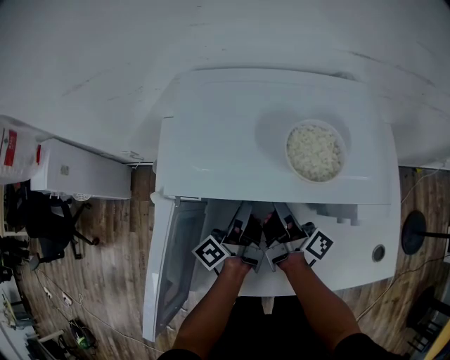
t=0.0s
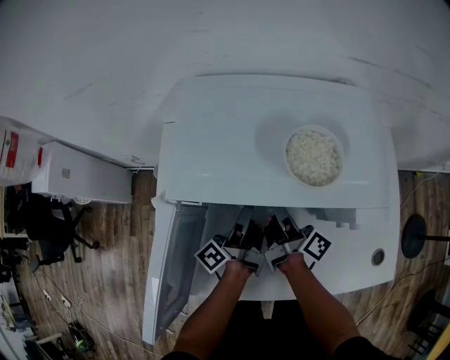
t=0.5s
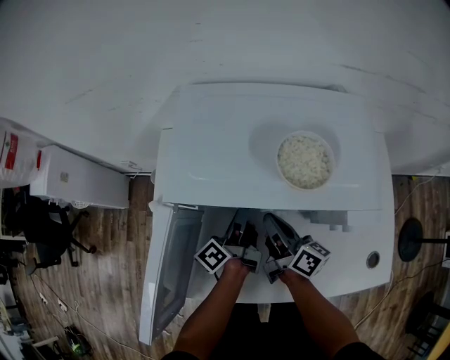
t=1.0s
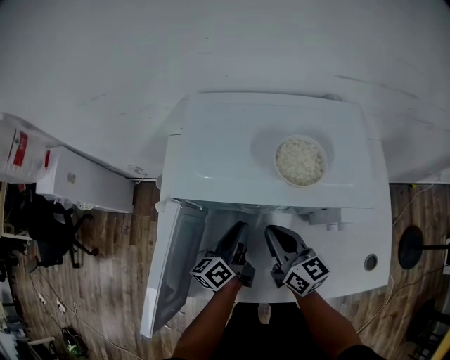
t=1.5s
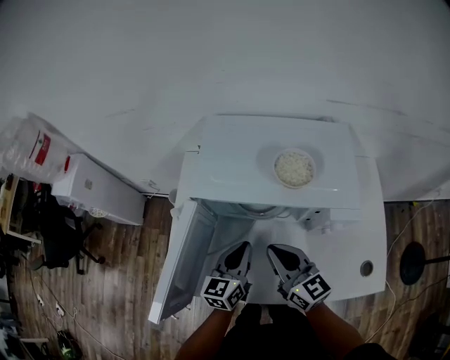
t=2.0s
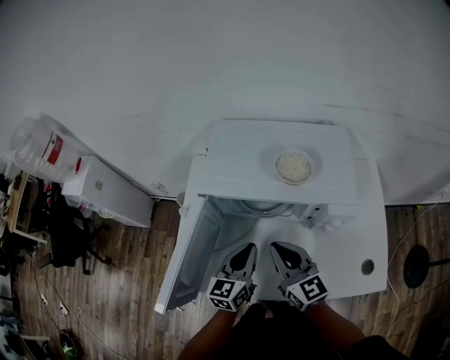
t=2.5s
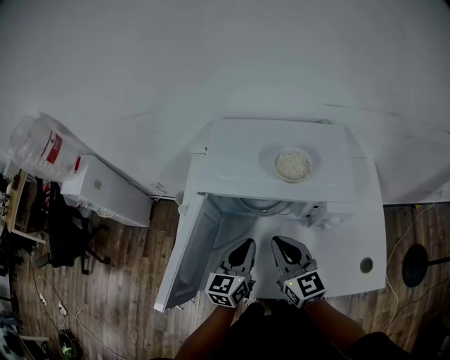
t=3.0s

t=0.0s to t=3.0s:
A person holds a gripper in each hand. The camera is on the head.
t=0.0s to t=1.5s: The right gripper moves about 5 cm, and rotates around the line of its fingers by some 50 degrees, counterclockwise from behind.
t=1.5s to t=3.0s: The right gripper moves upward, some 10 cm, and turns by some 20 degrees.

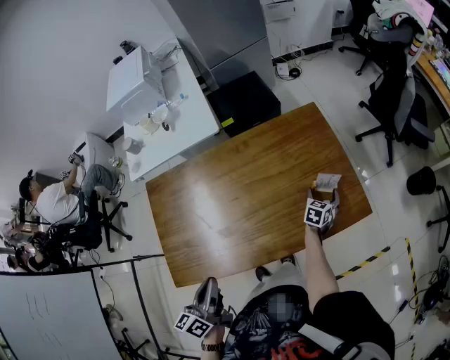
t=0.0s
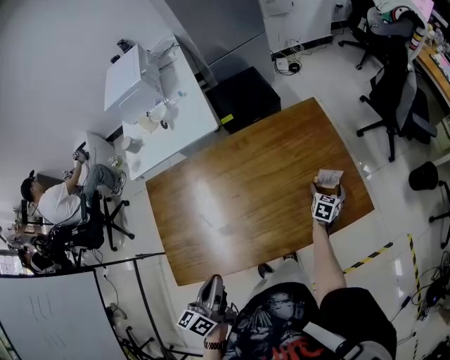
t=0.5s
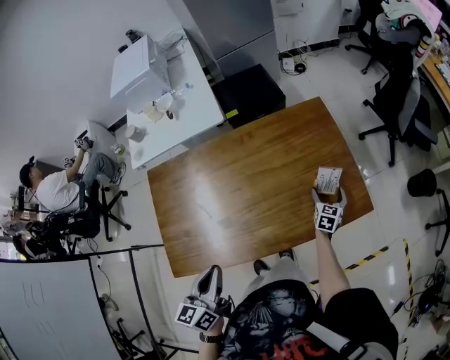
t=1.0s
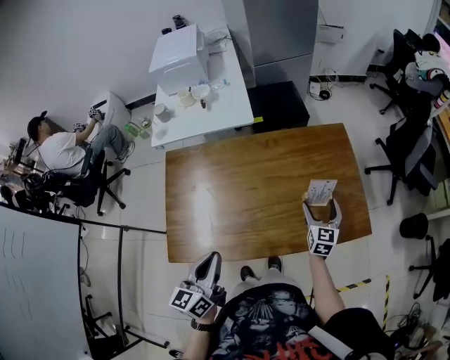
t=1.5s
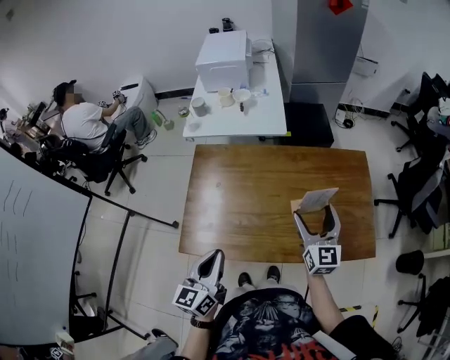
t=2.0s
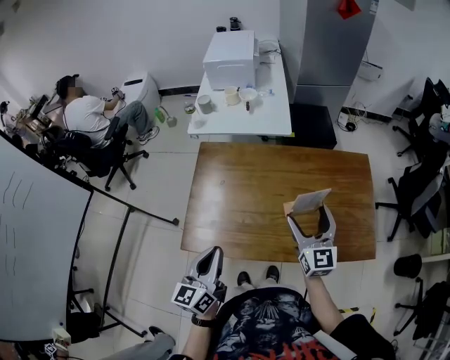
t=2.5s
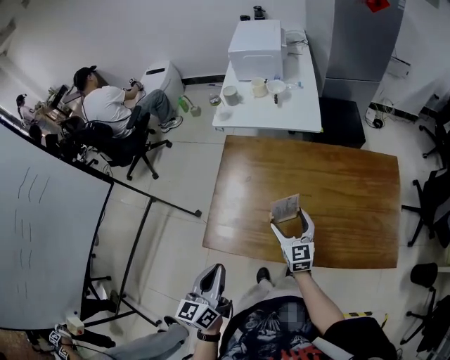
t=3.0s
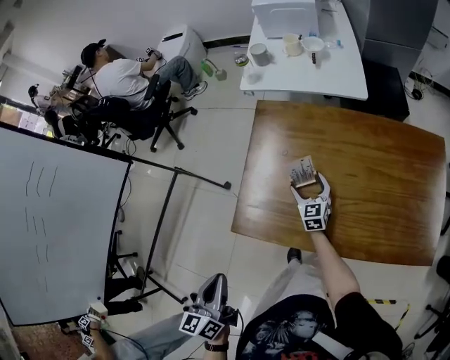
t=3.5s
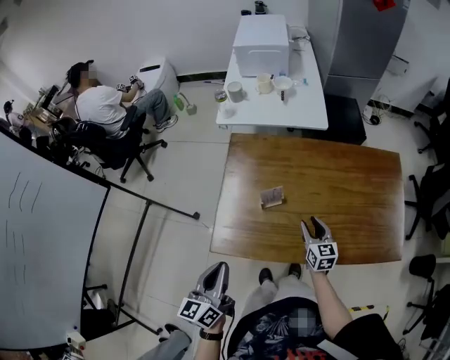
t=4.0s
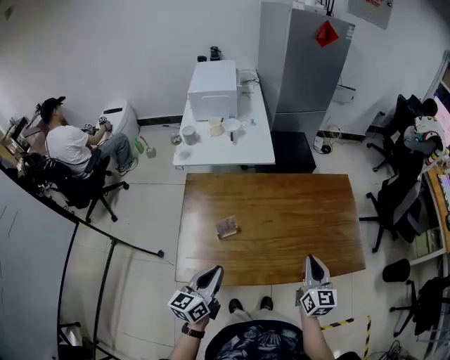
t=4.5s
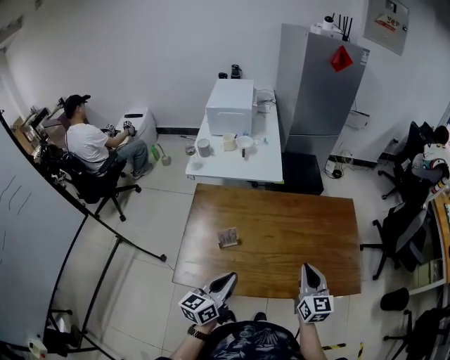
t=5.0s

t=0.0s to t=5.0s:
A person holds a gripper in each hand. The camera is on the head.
t=0.0s to t=2.5s: The left gripper changes place by roughly 15 cm, and swivels some 20 degrees; the right gripper shifts roughly 35 cm upward, and tips its fingers upward by roughly 40 degrees.
t=2.5s to t=5.0s: The right gripper travels downward and back again, about 30 cm each way, and closes its fingers.

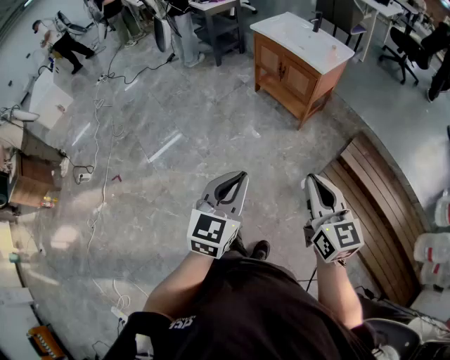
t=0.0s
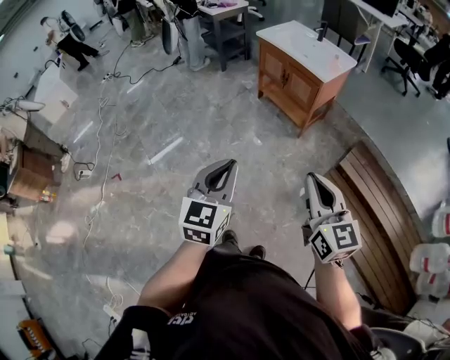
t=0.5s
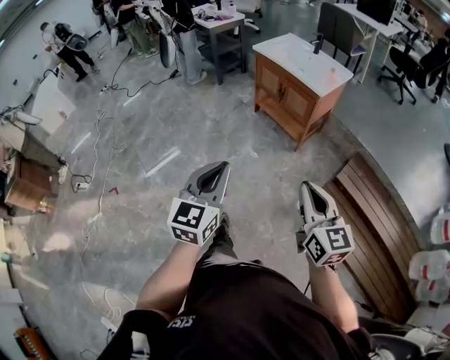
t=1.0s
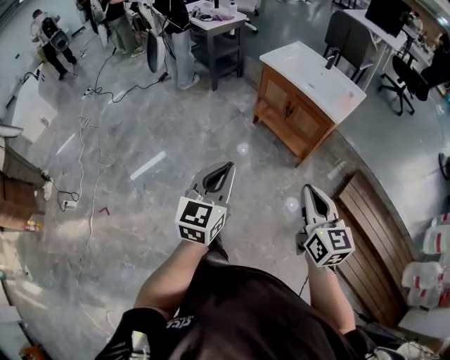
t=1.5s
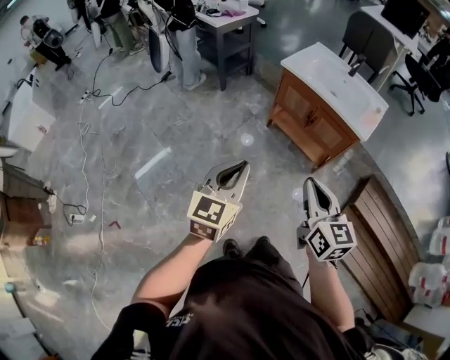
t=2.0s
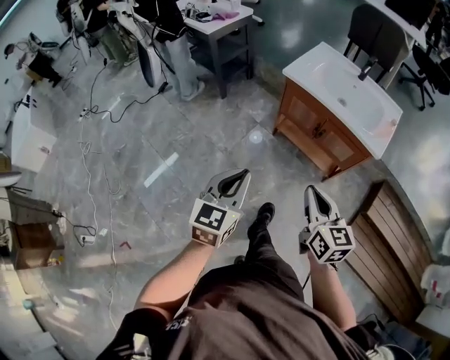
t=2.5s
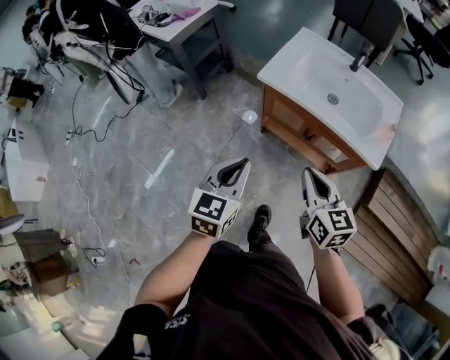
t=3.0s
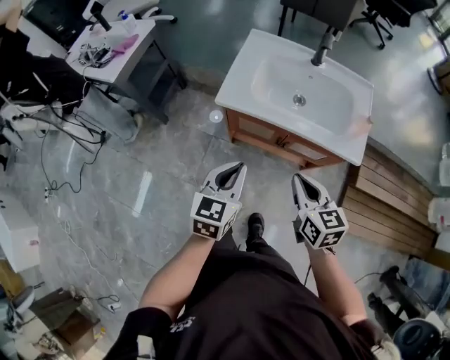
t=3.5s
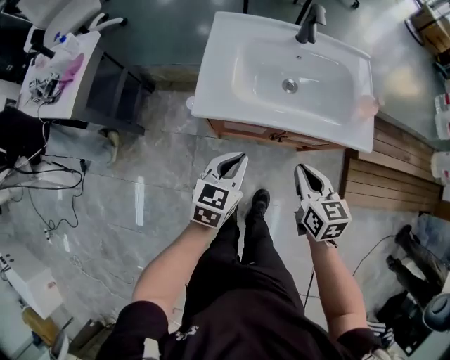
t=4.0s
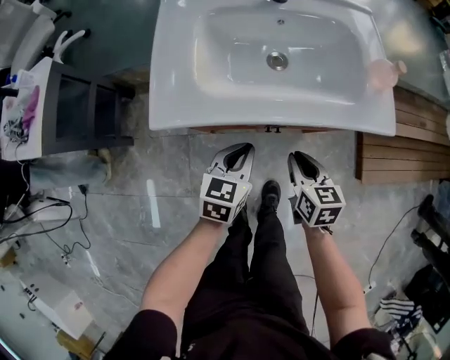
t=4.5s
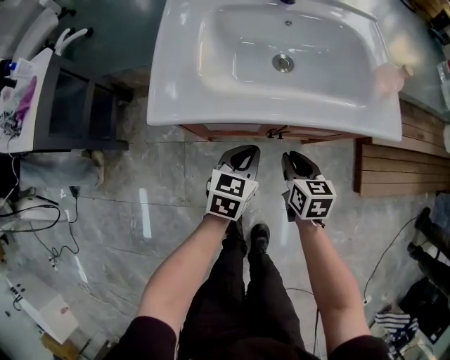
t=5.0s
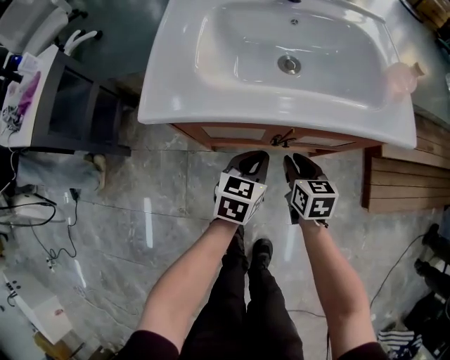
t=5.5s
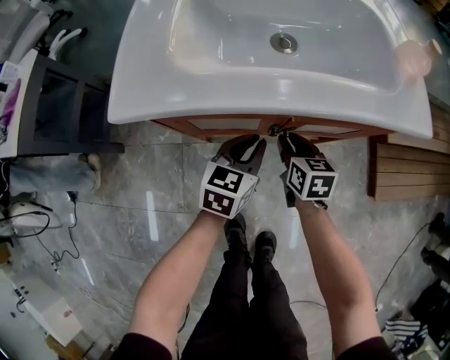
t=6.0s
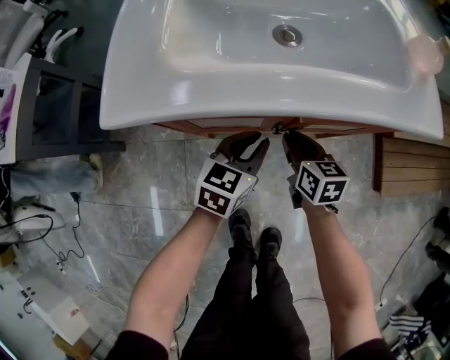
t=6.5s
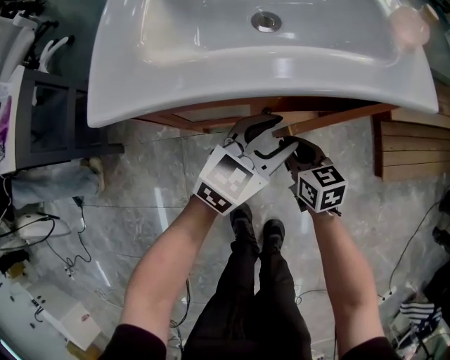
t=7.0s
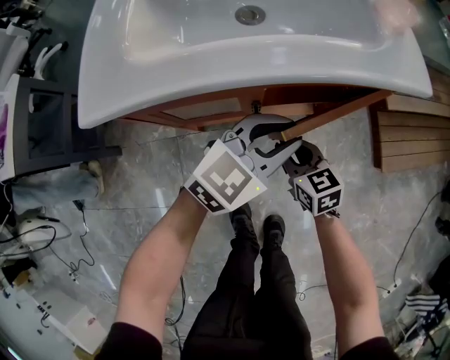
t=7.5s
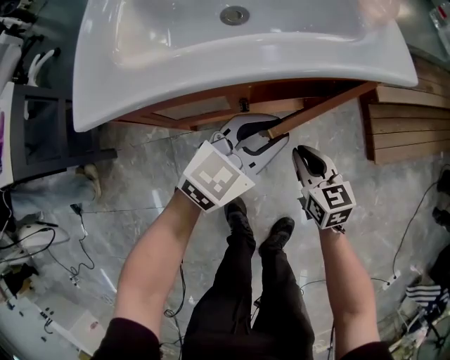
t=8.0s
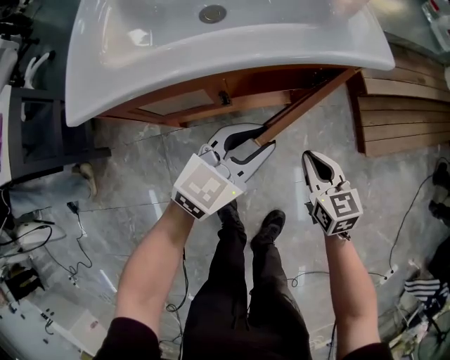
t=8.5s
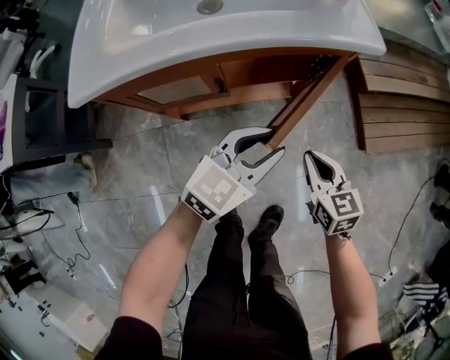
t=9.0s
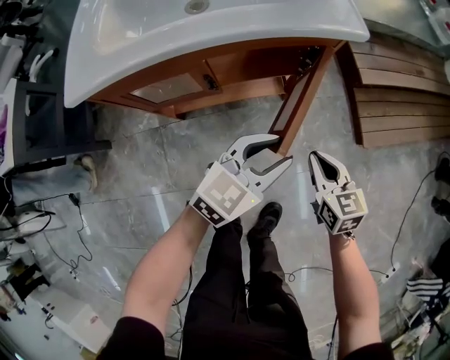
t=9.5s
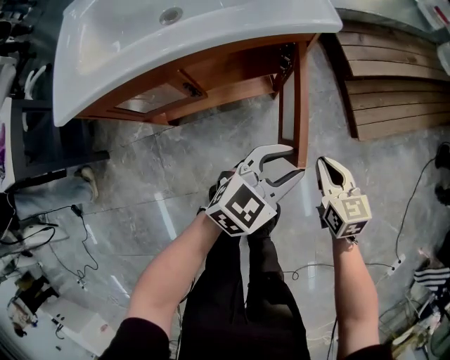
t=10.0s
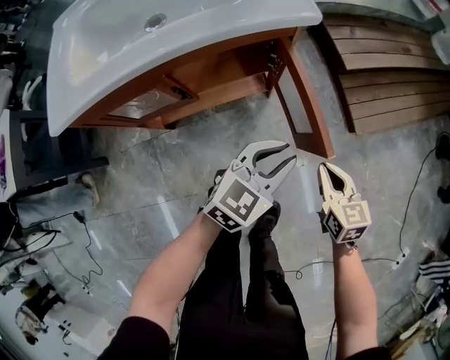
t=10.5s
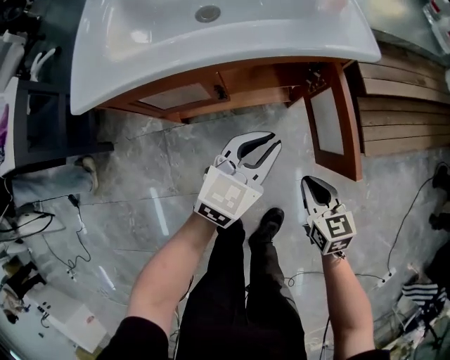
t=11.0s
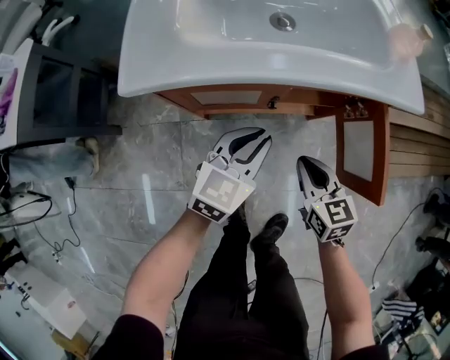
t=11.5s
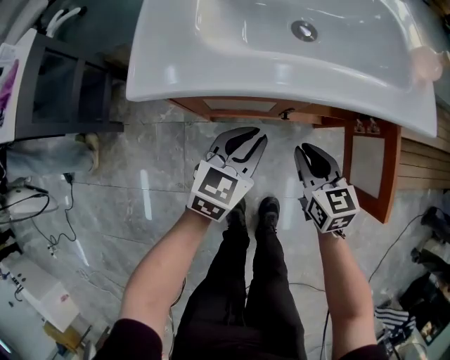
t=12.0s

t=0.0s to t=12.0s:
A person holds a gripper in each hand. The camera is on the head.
t=0.0s to t=2.0s: The two grippers travel together, forward and to the left, approximately 50 cm.
t=2.0s to t=4.0s: The two grippers travel together, some 50 cm. The right gripper turns by roughly 40 degrees. The left gripper rotates about 40 degrees.
t=4.0s to t=6.0s: The grippers both shift downward by approximately 30 cm. The right gripper opens up.
t=6.0s to t=8.0s: The right gripper heads to the right and backward, covering about 15 cm, while the left gripper moves to the right and upward, some 15 cm, turns by some 40 degrees, and opens and closes again.
t=8.0s to t=10.0s: The right gripper moves to the right, roughly 20 cm, while the left gripper is displaced to the right and backward by some 20 cm.
t=10.0s to t=12.0s: The right gripper changes place by about 30 cm. Meanwhile the left gripper ends up some 35 cm from where it was, turns by some 30 degrees, and closes its fingers.

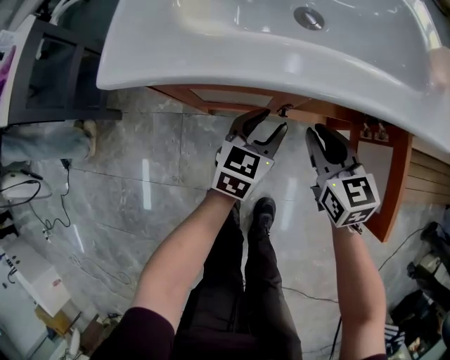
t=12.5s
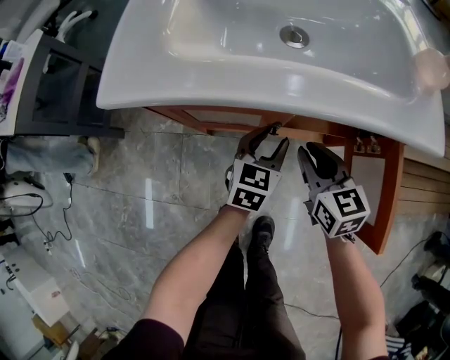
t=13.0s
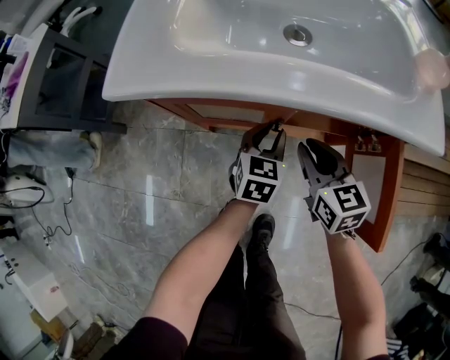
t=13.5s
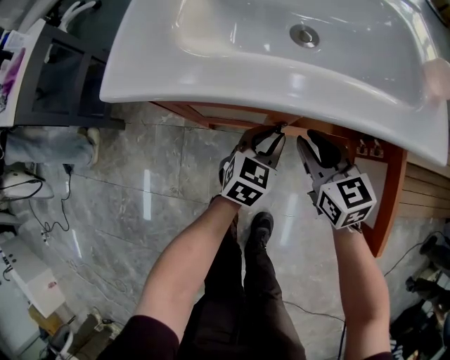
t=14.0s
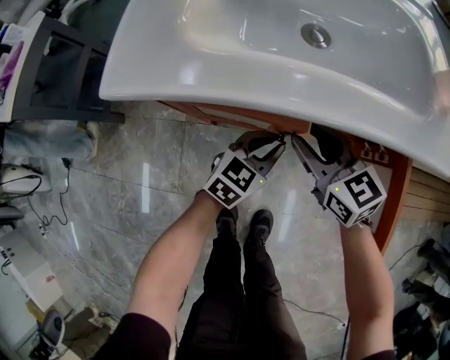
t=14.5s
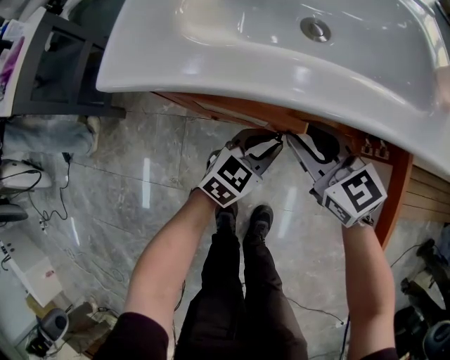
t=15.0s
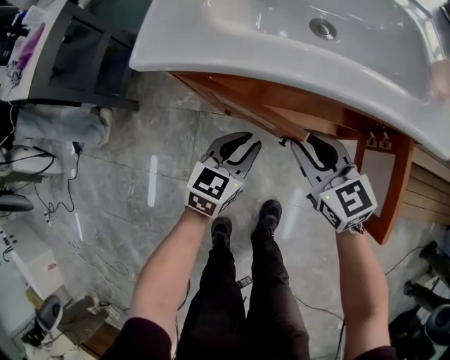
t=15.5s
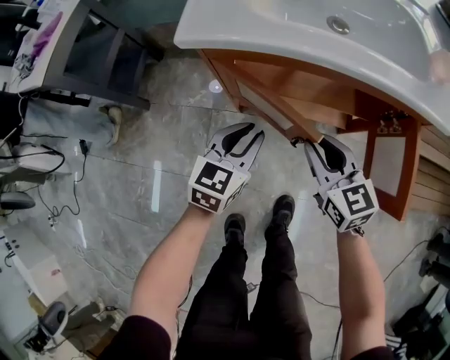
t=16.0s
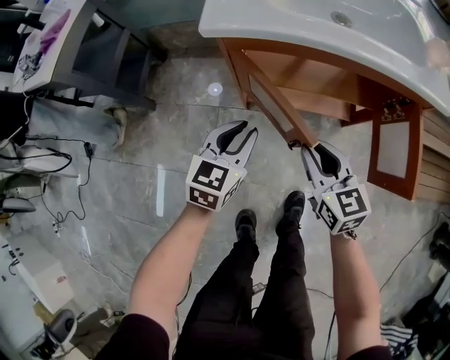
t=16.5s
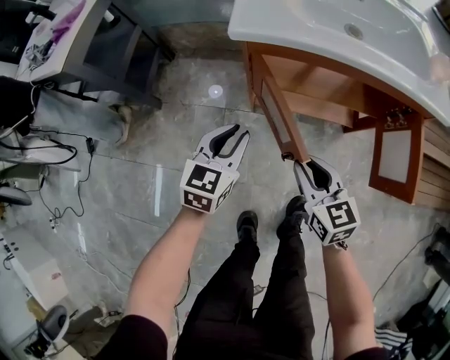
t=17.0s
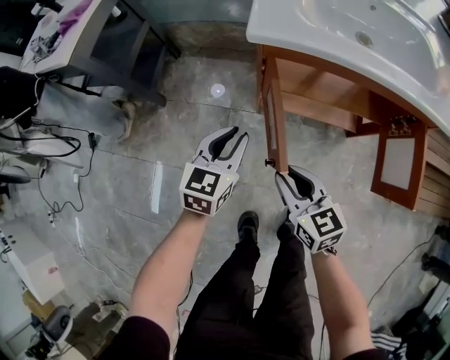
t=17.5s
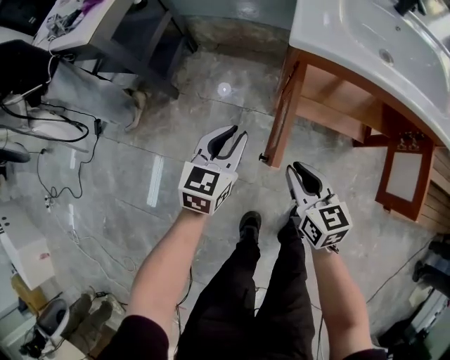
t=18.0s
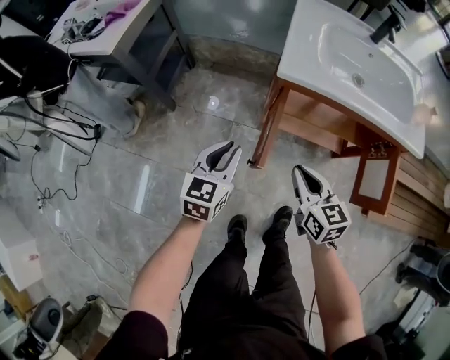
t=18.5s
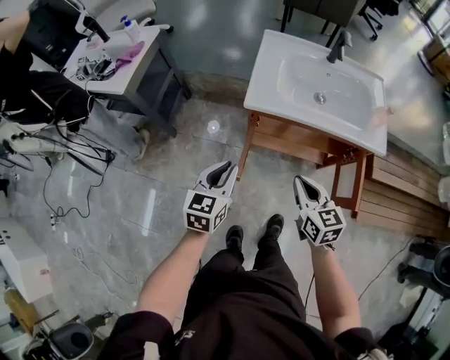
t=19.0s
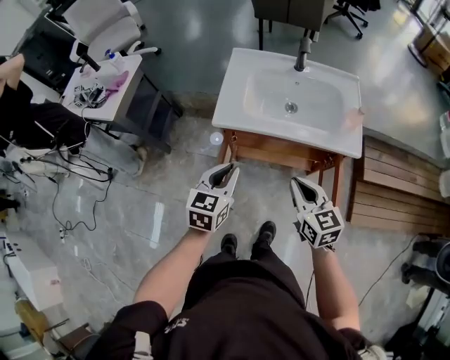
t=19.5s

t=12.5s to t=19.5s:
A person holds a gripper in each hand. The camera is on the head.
t=12.5s to t=14.5s: The right gripper ends up approximately 5 cm from where it was, while the left gripper closes its fingers.
t=14.5s to t=16.0s: The right gripper moves backward and to the left, about 15 cm, while the left gripper goes some 20 cm to the left, backward and upward.
t=16.0s to t=17.5s: The right gripper travels to the left and backward by roughly 20 cm. Meanwhile the left gripper is displaced to the left by about 15 cm.
t=17.5s to t=19.5s: Both grippers travel together upward and to the right, approximately 35 cm. The right gripper closes up.
